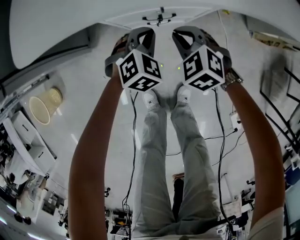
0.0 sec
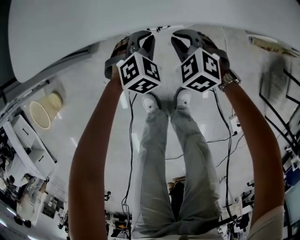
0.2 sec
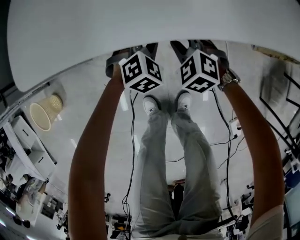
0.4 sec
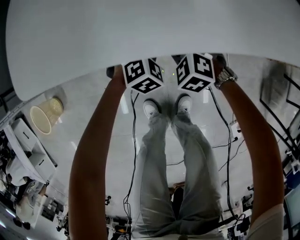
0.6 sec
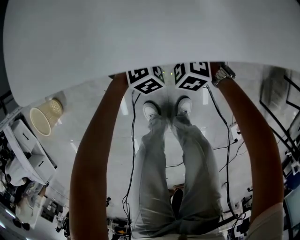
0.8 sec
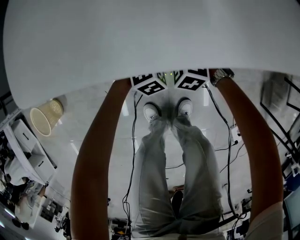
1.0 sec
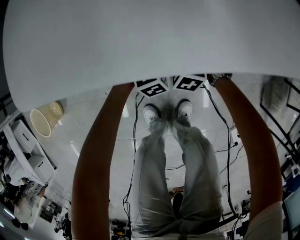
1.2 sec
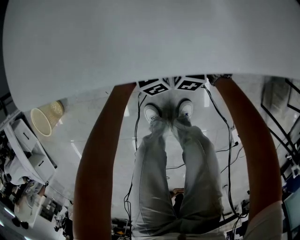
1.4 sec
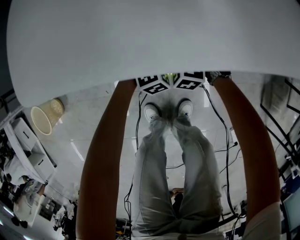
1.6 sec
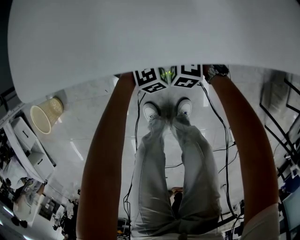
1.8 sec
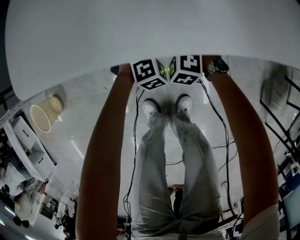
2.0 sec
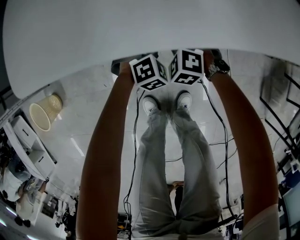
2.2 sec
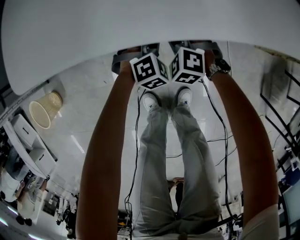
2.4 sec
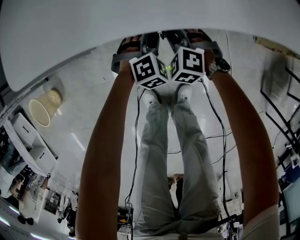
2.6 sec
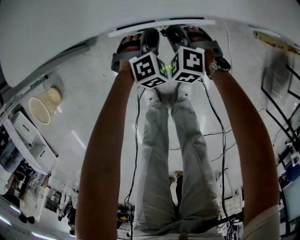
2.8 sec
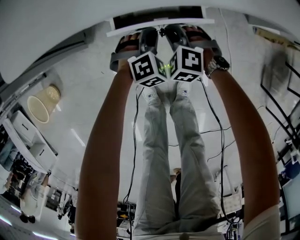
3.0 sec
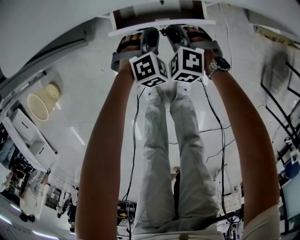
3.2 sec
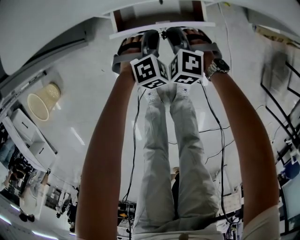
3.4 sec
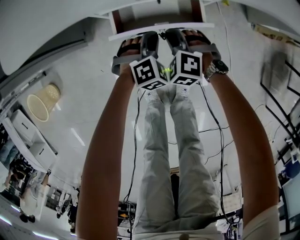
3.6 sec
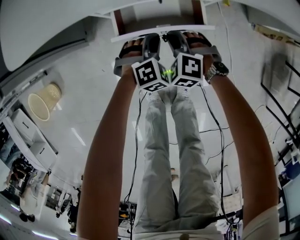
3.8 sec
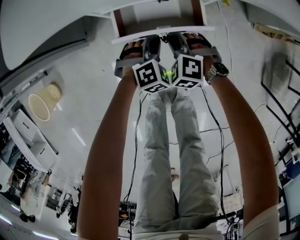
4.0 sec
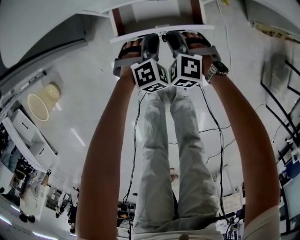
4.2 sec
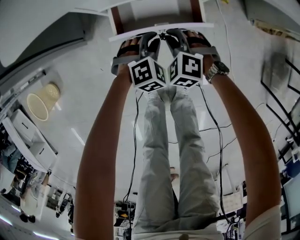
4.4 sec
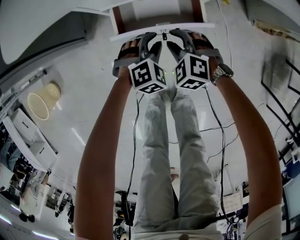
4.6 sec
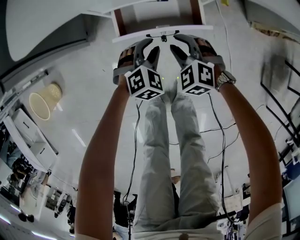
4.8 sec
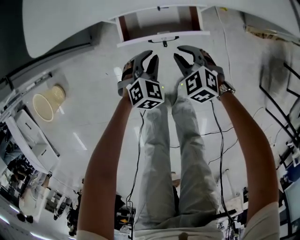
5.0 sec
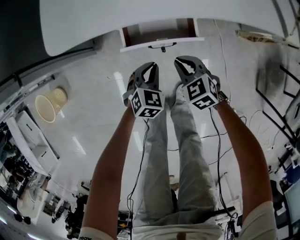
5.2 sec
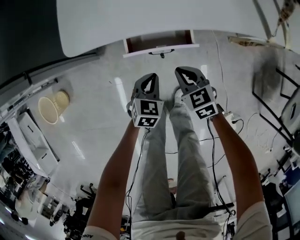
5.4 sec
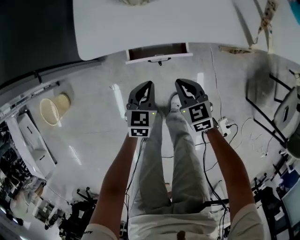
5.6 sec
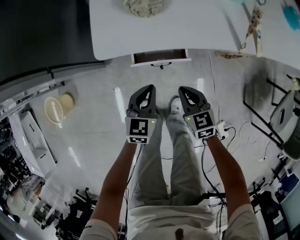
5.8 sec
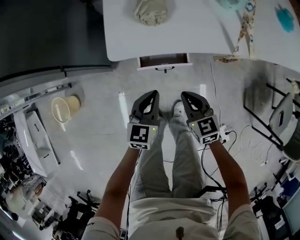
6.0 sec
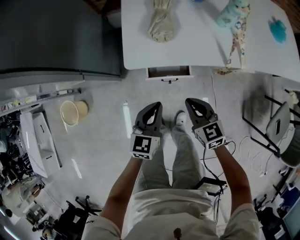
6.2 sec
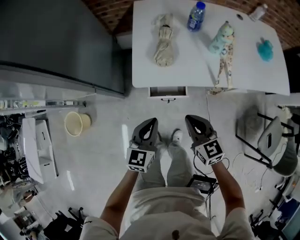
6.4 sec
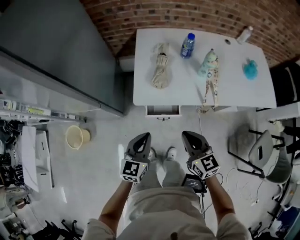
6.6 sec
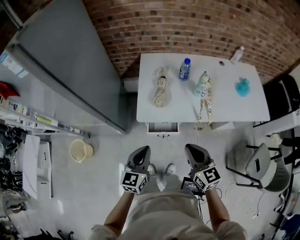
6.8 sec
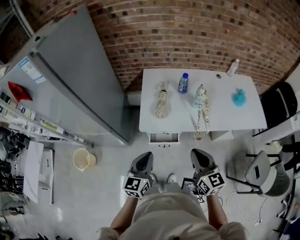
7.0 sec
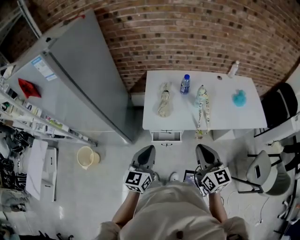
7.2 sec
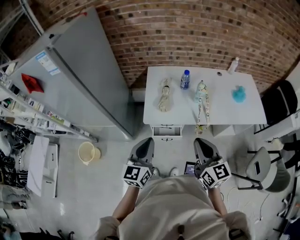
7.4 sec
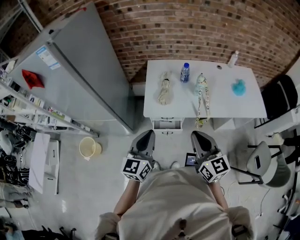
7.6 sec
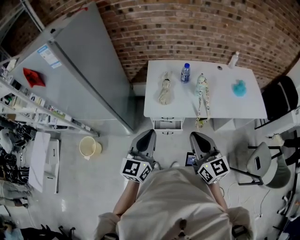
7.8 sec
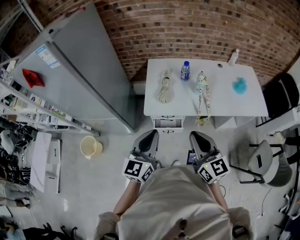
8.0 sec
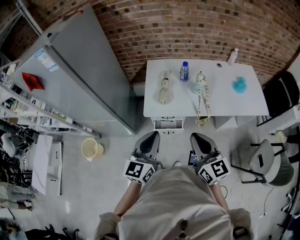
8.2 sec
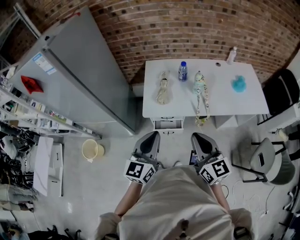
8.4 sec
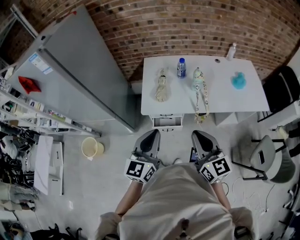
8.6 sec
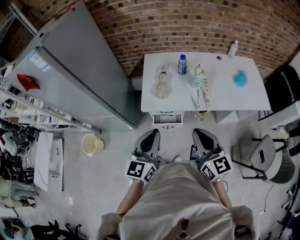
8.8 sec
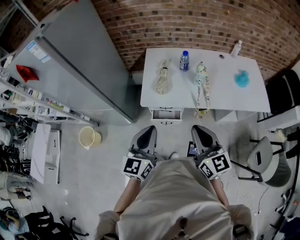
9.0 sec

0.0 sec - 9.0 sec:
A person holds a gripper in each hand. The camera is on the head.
0.0 sec - 1.6 sec: The right gripper heads downward and forward, covering about 10 cm, swivels roughly 20 degrees, and opens and closes again, while the left gripper moves downward, about 5 cm, and opens, then closes once more.
1.6 sec - 3.0 sec: The two grippers go about 5 cm backward.
3.0 sec - 4.4 sec: The grippers stay close to where they were, moving slightly.
4.4 sec - 6.0 sec: Both grippers move upward, roughly 30 cm. The right gripper twists about 50 degrees clockwise, seen from behind, and opens, then closes again; the left gripper twists about 50 degrees counterclockwise, seen from behind.
6.0 sec - 7.6 sec: The two grippers go about 50 cm upward. The left gripper turns by approximately 30 degrees. Meanwhile the right gripper points its fingers some 30 degrees further upward.
7.6 sec - 9.0 sec: There are only small adjustments of the grippers.

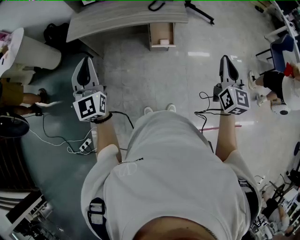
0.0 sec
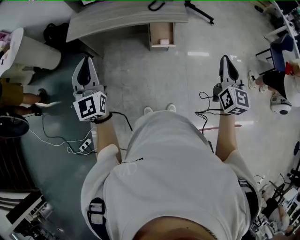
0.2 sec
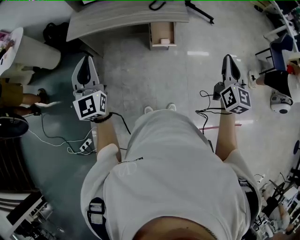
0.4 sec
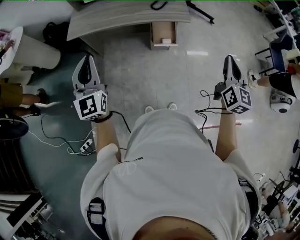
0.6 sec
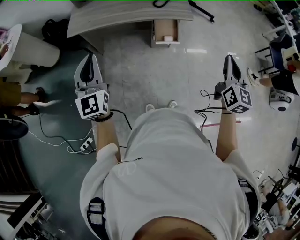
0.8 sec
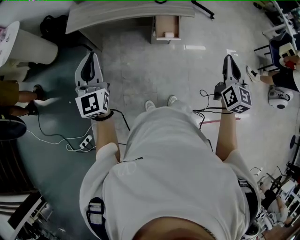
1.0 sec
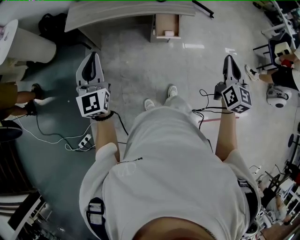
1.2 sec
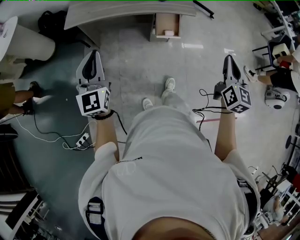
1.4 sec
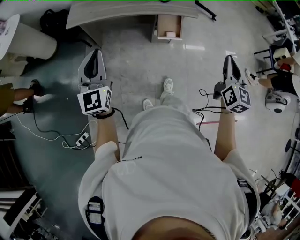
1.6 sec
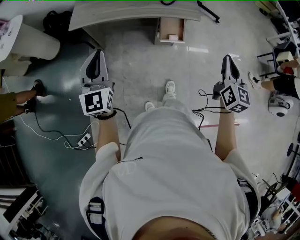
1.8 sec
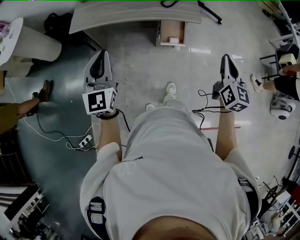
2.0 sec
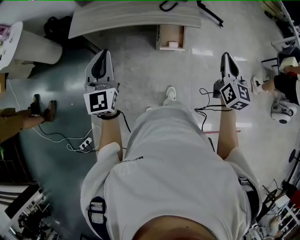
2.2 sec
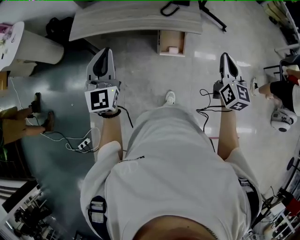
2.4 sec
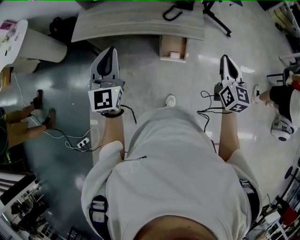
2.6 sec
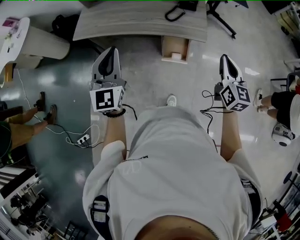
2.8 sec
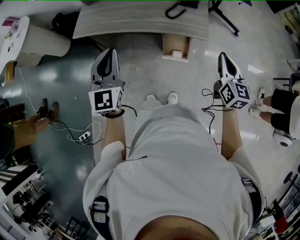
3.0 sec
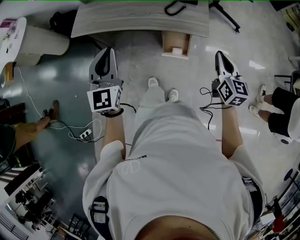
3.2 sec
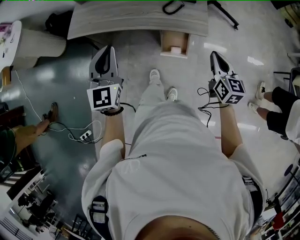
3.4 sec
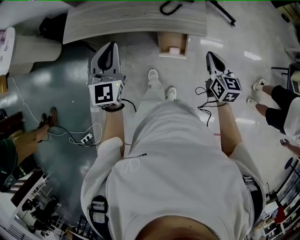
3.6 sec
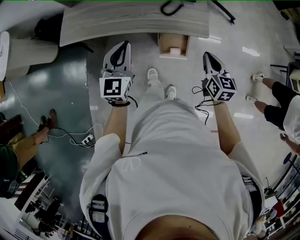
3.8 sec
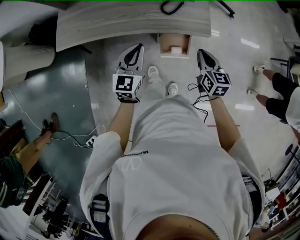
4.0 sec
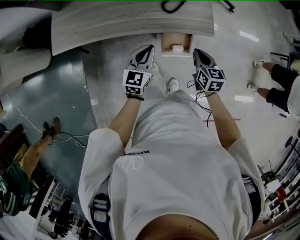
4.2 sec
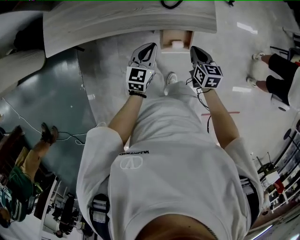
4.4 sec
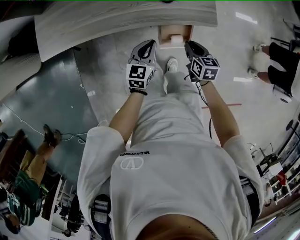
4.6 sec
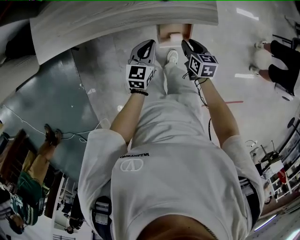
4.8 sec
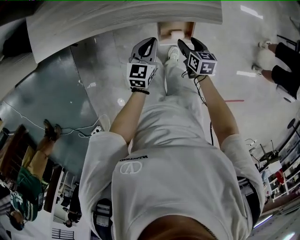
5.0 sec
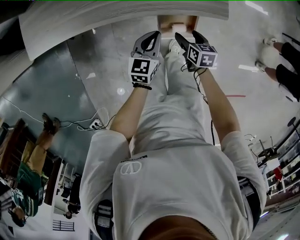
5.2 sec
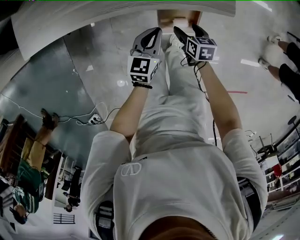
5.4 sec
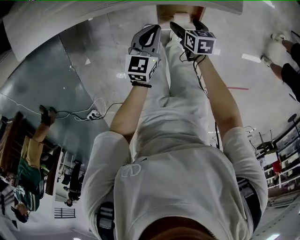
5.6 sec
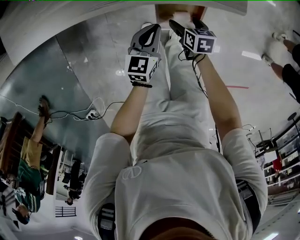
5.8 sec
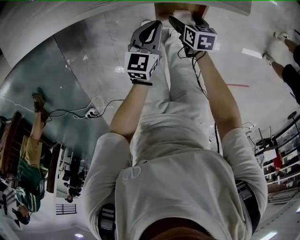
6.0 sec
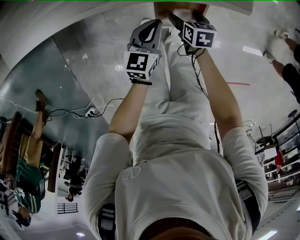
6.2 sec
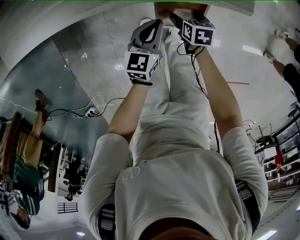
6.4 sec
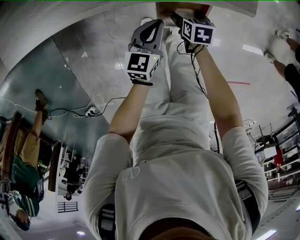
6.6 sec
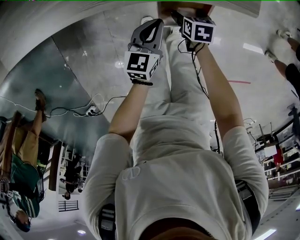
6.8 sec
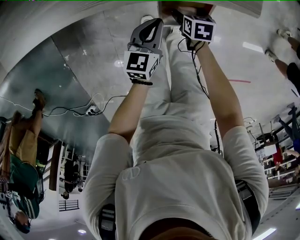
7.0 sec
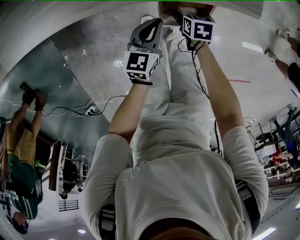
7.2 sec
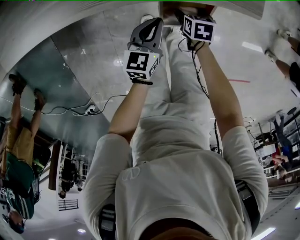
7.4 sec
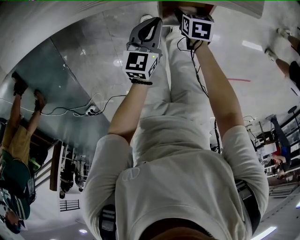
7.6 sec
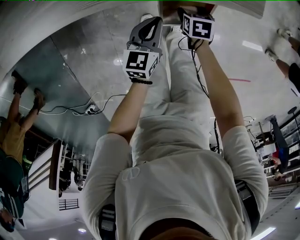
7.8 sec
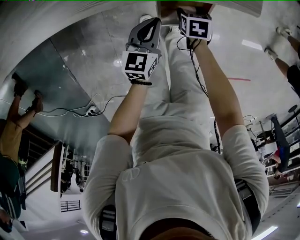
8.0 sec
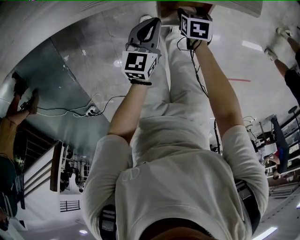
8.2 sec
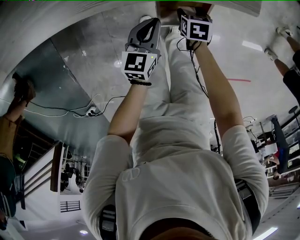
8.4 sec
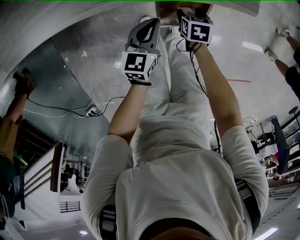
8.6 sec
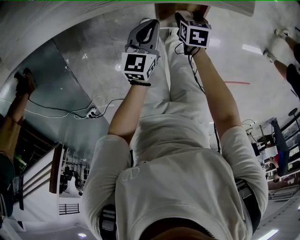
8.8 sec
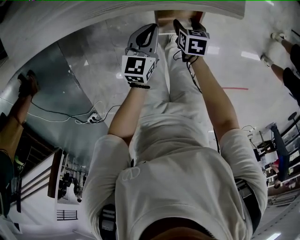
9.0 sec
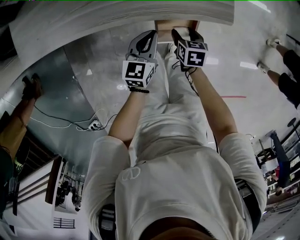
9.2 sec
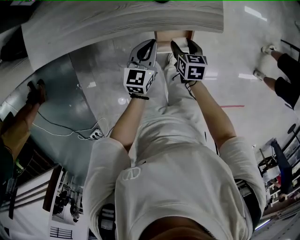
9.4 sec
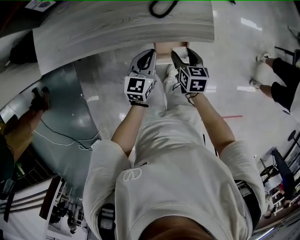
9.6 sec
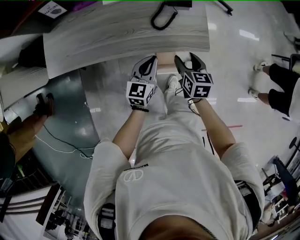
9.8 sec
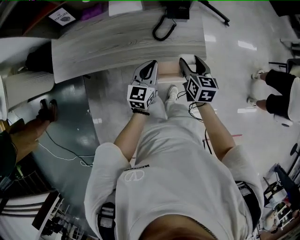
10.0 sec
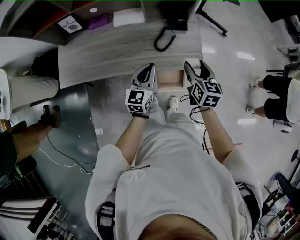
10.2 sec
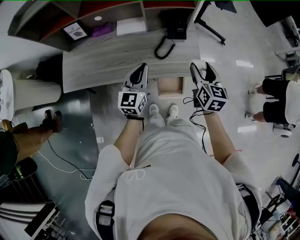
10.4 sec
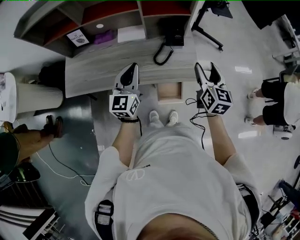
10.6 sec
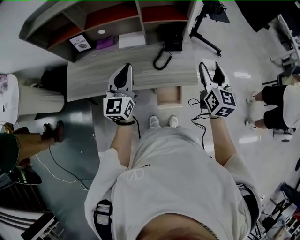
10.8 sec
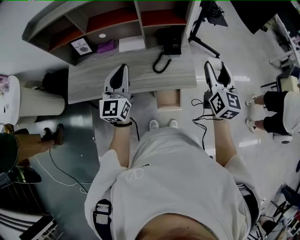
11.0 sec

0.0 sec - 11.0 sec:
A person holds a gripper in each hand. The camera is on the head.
0.0 sec - 1.6 sec: The left gripper moves to the left and downward, approximately 10 cm, while the right gripper heads to the left, covering about 10 cm.
1.6 sec - 3.2 sec: The left gripper goes about 25 cm forward and to the right. The right gripper travels forward by approximately 30 cm, and changes its angle by roughly 20 degrees.
3.2 sec - 4.8 sec: The right gripper goes about 35 cm downward, and points its fingers approximately 30 degrees further downward. The left gripper heads downward and forward, covering approximately 40 cm, and changes its angle by about 50 degrees.
4.8 sec - 6.2 sec: The grippers both shift downward by about 20 cm. The right gripper opens its fingers.
6.2 sec - 7.8 sec: There are only small adjustments of the grippers.
7.8 sec - 9.4 sec: The grippers both shift upward by roughly 15 cm.
9.4 sec - 11.0 sec: The grippers both shift upward by about 50 cm. The left gripper tilts its fingers approximately 30 degrees upward, while the right gripper angles its fingers upward, by some 50 degrees.

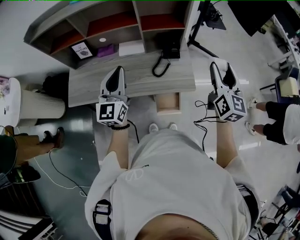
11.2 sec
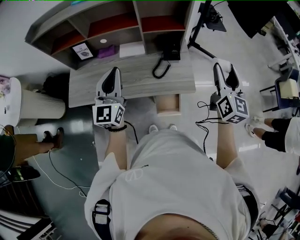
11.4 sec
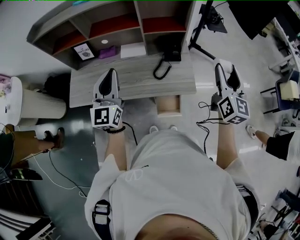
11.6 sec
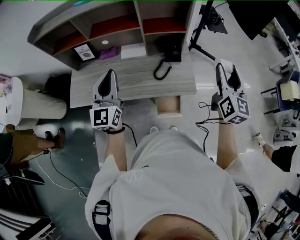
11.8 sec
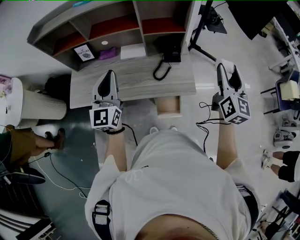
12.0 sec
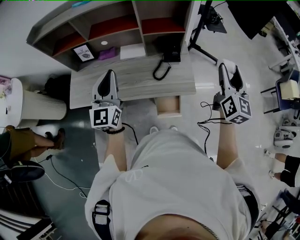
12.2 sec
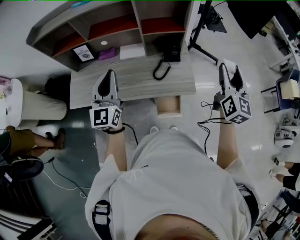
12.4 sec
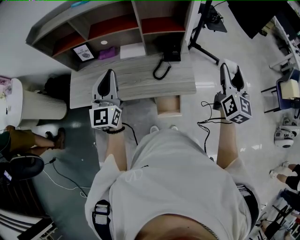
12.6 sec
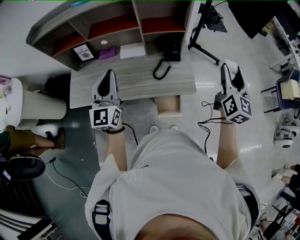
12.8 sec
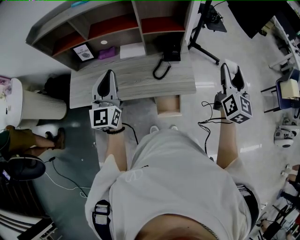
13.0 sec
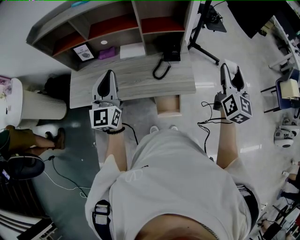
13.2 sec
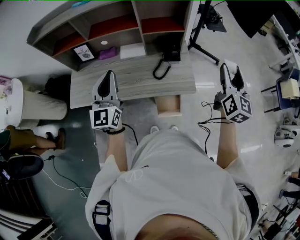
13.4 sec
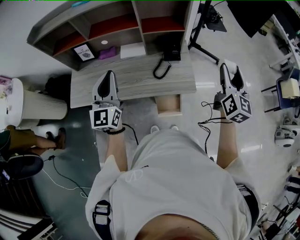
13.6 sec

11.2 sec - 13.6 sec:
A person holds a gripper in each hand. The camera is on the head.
11.2 sec - 12.4 sec: There are only small adjustments of the grippers.
12.4 sec - 13.6 sec: Neither gripper changes place.

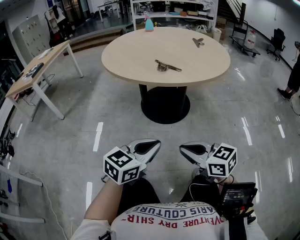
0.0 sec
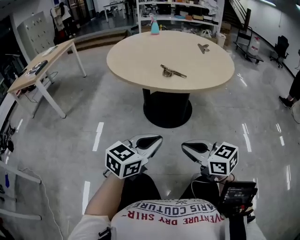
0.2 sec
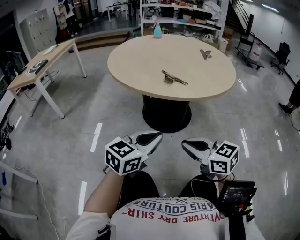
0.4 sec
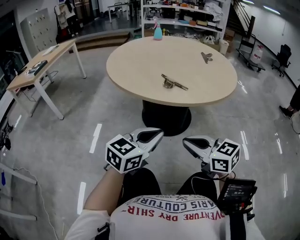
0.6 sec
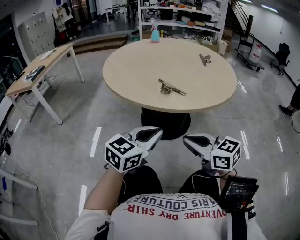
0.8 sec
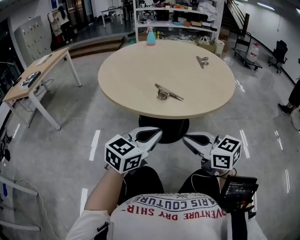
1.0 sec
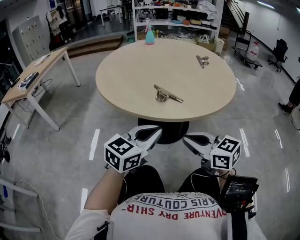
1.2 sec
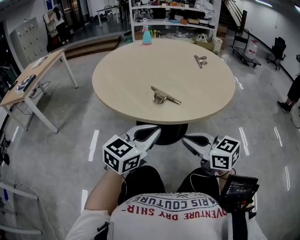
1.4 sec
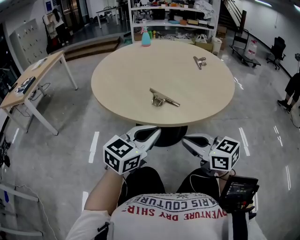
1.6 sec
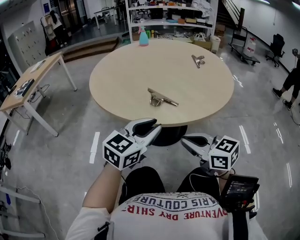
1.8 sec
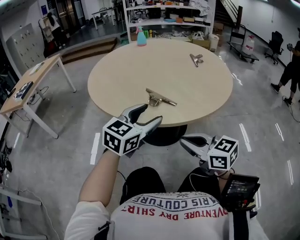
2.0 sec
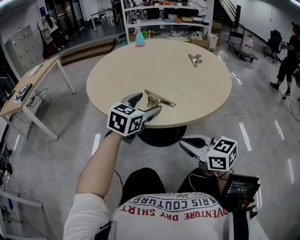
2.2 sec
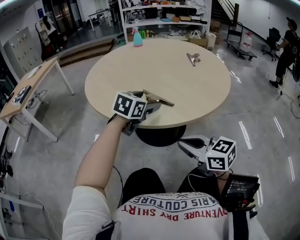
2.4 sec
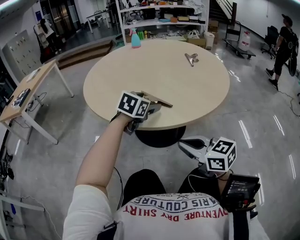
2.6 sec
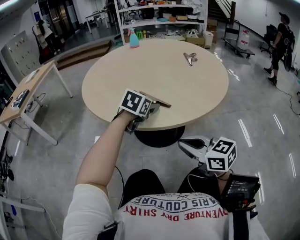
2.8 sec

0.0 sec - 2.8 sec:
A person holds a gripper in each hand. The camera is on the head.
0.0 sec - 1.4 sec: Both grippers move forward, approximately 20 cm.
1.4 sec - 2.8 sec: The left gripper is displaced forward by roughly 20 cm, turns by about 30 degrees, and opens up.
